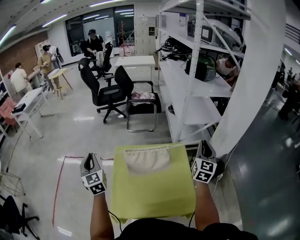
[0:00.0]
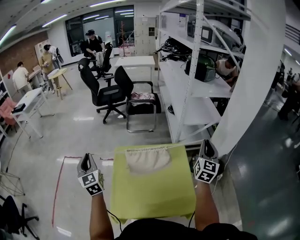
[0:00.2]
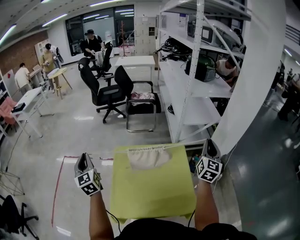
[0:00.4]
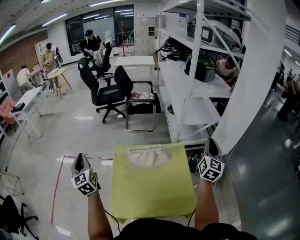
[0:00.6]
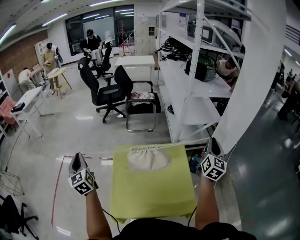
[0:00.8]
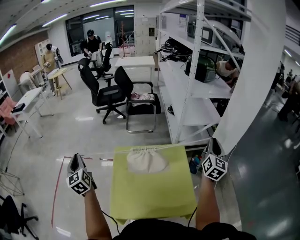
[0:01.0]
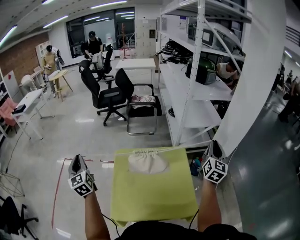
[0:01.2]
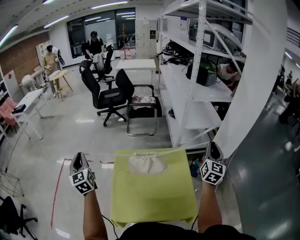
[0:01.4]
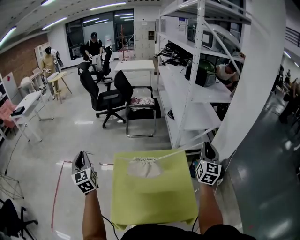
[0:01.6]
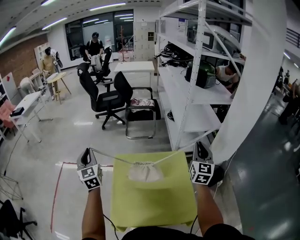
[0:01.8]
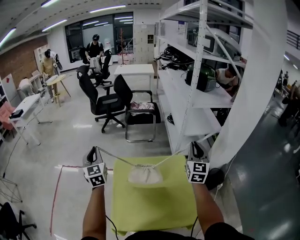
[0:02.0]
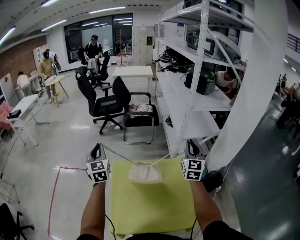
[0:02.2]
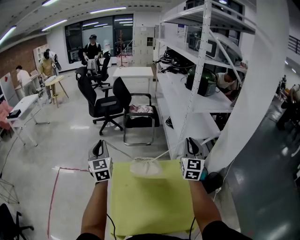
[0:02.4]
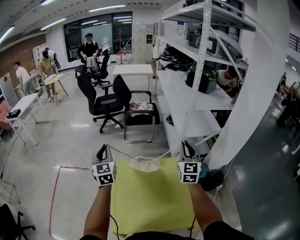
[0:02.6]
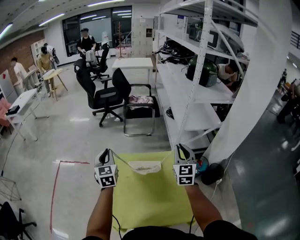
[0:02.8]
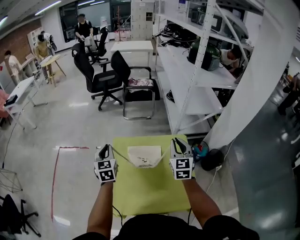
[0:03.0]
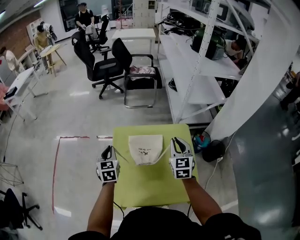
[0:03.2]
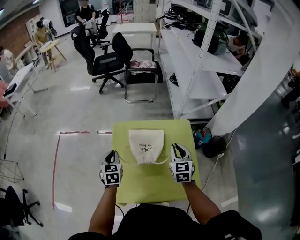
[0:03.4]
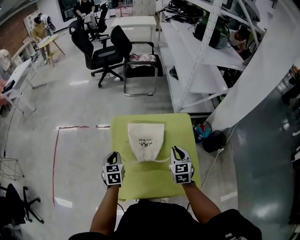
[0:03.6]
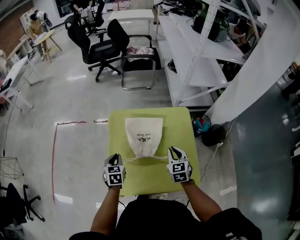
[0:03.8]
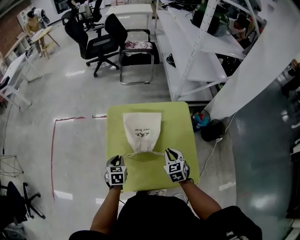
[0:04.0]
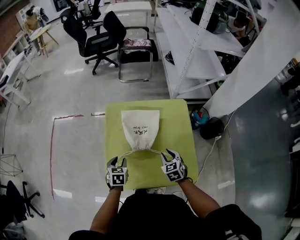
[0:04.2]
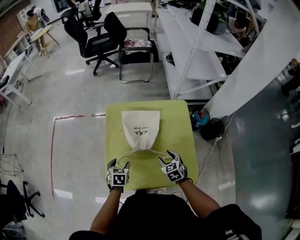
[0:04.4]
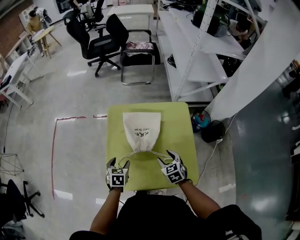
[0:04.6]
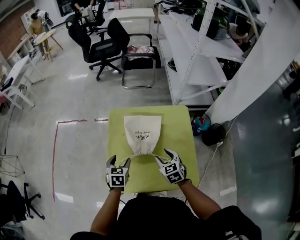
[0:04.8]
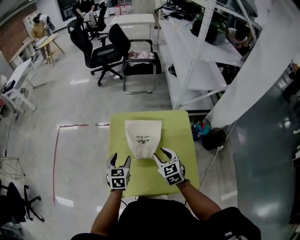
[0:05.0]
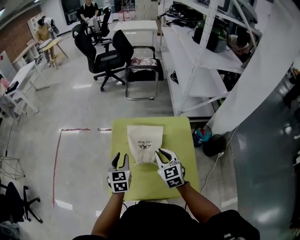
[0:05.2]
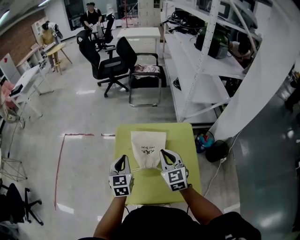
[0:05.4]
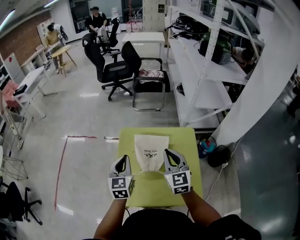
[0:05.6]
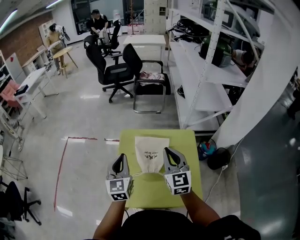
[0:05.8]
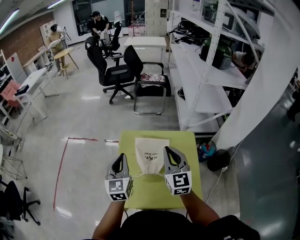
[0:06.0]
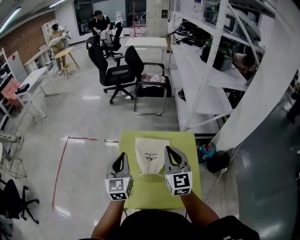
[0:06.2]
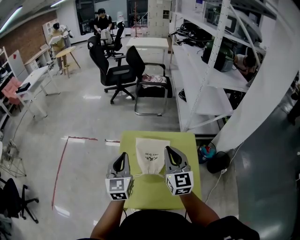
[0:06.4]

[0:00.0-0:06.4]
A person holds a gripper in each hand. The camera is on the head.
0:00.0 to 0:01.6: The left gripper shifts by some 5 cm.
0:01.6 to 0:03.2: The right gripper moves to the left and downward, roughly 25 cm, and rotates roughly 30 degrees. Meanwhile the left gripper shifts about 20 cm downward and to the right, and swivels some 30 degrees.
0:03.2 to 0:04.8: The left gripper is displaced downward, backward and to the right by about 20 cm, changes its angle by about 20 degrees, and opens, while the right gripper is displaced downward and backward by some 20 cm, changes its angle by roughly 30 degrees, and opens up.
0:04.8 to 0:06.4: Both grippers move upward, roughly 25 cm. The right gripper angles its fingers upward, by approximately 40 degrees, and closes. Meanwhile the left gripper tilts its fingers some 40 degrees upward, and closes up.

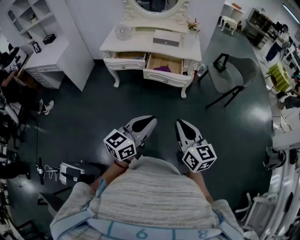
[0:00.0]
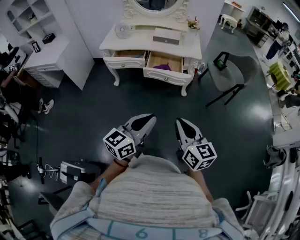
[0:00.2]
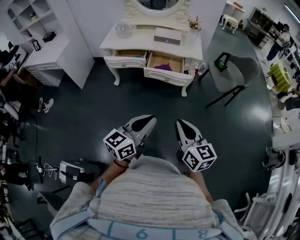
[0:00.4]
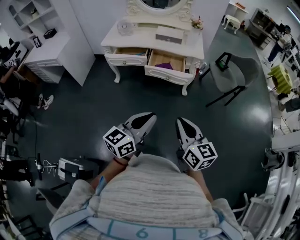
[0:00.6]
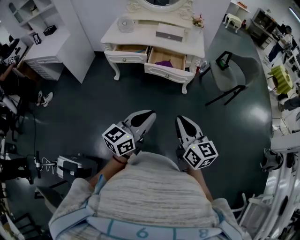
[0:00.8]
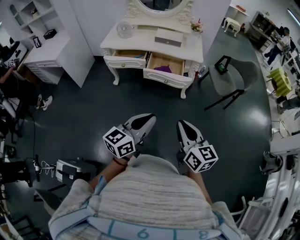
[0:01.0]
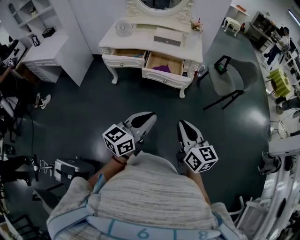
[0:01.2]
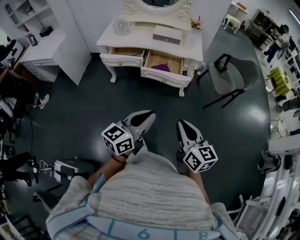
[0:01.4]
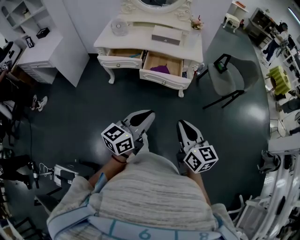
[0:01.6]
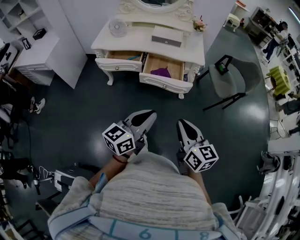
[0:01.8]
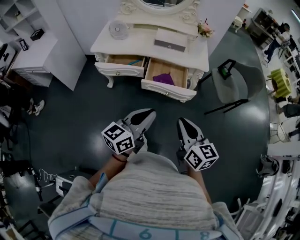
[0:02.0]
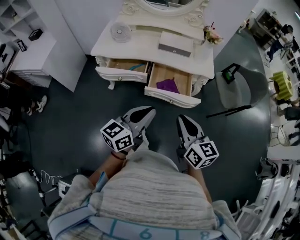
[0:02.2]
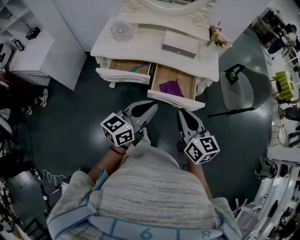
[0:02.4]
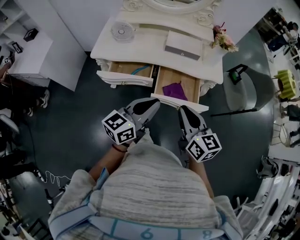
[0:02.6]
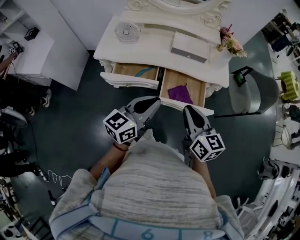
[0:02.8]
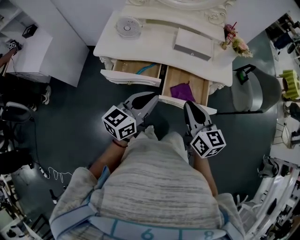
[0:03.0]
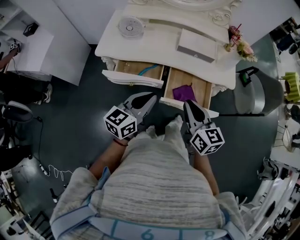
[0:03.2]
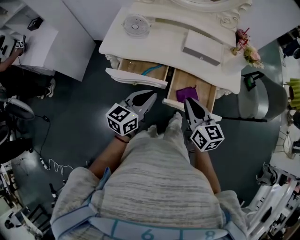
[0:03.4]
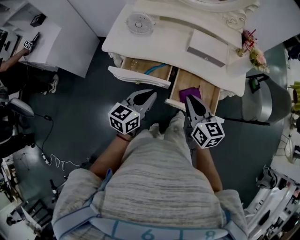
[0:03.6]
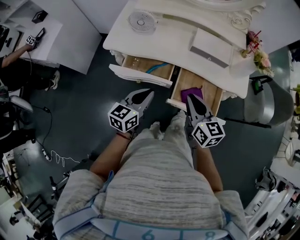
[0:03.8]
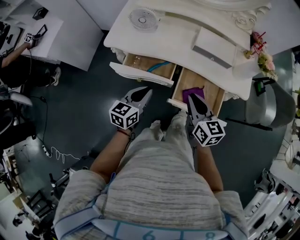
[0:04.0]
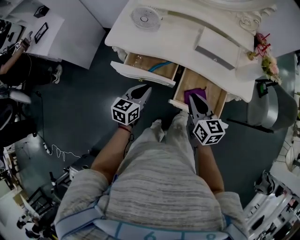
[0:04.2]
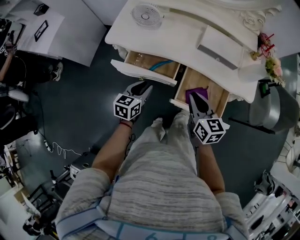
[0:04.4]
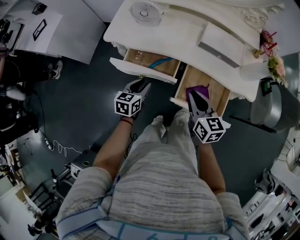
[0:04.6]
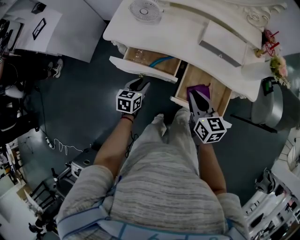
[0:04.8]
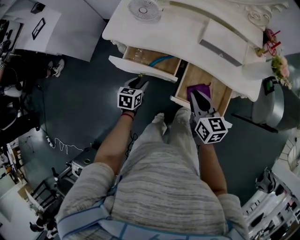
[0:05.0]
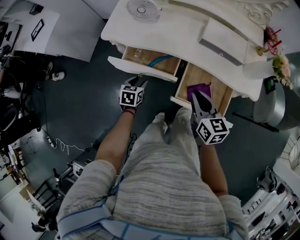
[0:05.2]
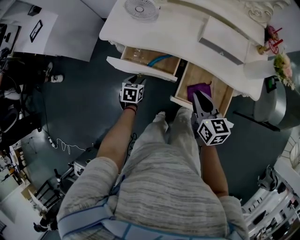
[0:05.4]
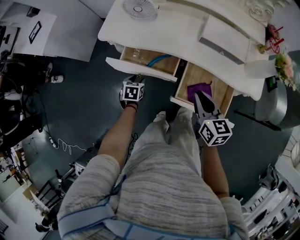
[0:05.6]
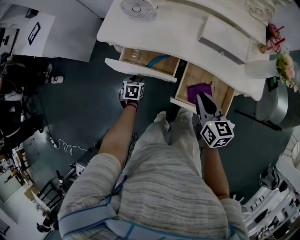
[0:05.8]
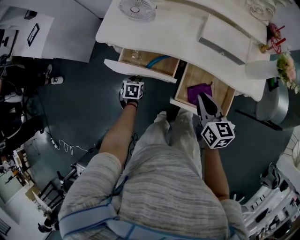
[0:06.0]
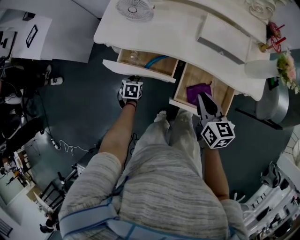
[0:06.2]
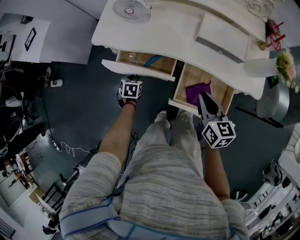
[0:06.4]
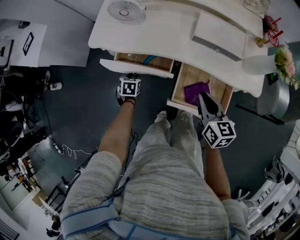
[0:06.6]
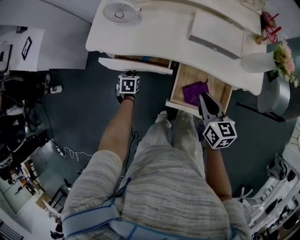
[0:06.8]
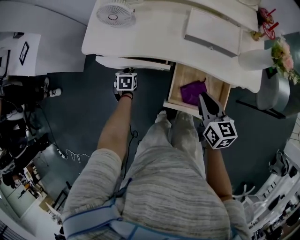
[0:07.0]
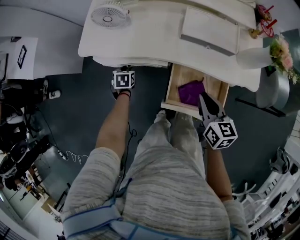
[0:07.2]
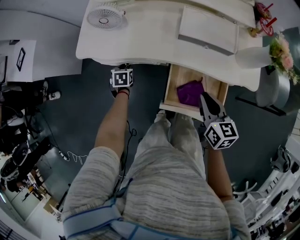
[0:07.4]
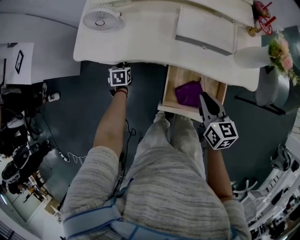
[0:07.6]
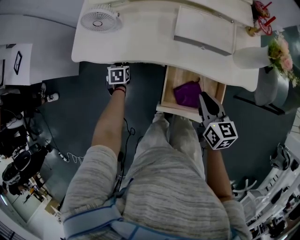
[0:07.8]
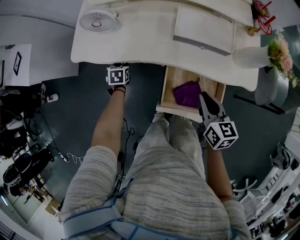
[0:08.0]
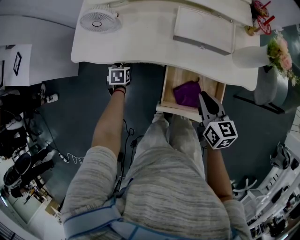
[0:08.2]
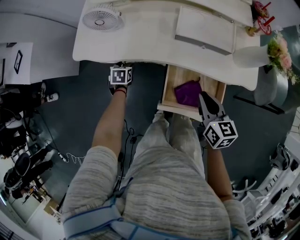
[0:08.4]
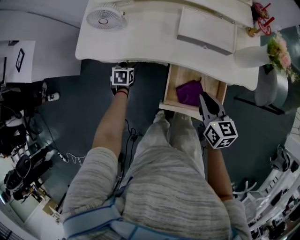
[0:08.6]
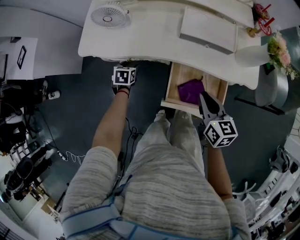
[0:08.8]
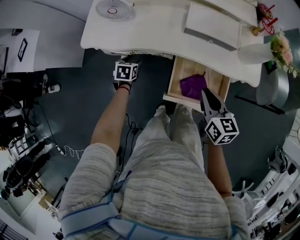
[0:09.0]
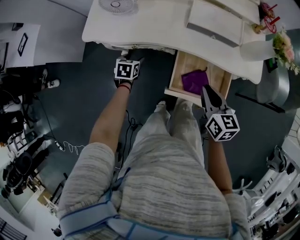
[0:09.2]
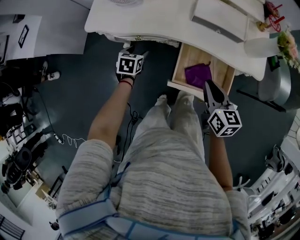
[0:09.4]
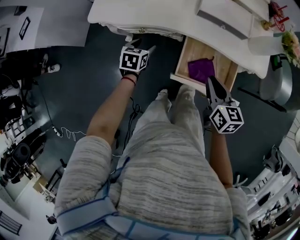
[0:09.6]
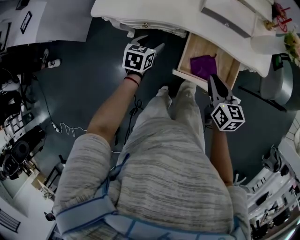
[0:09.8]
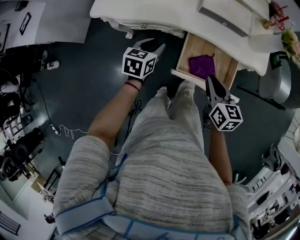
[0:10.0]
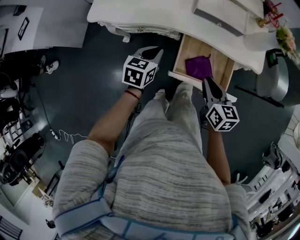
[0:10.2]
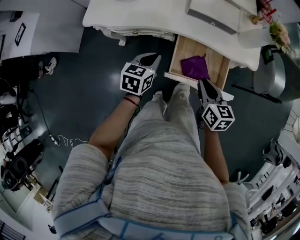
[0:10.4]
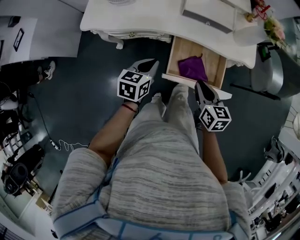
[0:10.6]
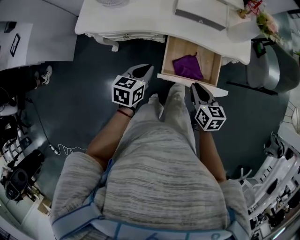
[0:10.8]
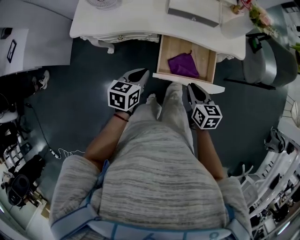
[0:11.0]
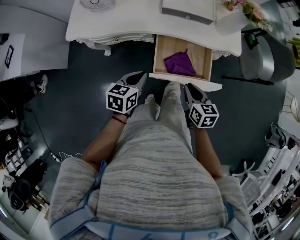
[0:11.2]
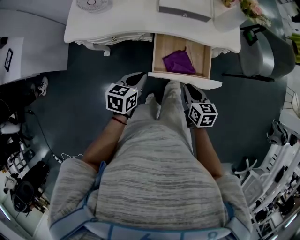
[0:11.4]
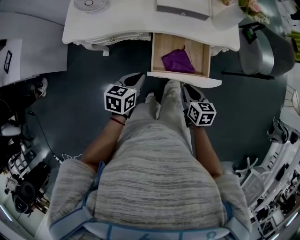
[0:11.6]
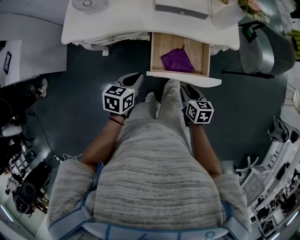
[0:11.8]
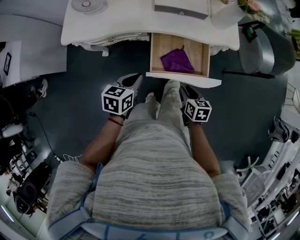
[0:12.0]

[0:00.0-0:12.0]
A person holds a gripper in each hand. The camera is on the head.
0:00.0 to 0:01.6: Both grippers move forward, roughly 10 cm.
0:01.6 to 0:03.0: Both grippers are carried forward and to the left, roughly 40 cm.
0:03.0 to 0:04.4: The right gripper heads downward and forward, covering roughly 15 cm, while the left gripper goes about 25 cm downward, forward and to the left, and rotates about 30 degrees.
0:04.4 to 0:06.0: The left gripper travels downward by roughly 20 cm, and tips its fingers downward by approximately 30 degrees. The right gripper moves approximately 5 cm.
0:06.0 to 0:07.6: The right gripper shifts about 10 cm to the right. Meanwhile the left gripper travels forward by about 15 cm.
0:07.6 to 0:09.0: The left gripper opens.
0:09.0 to 0:10.4: The right gripper is displaced backward by approximately 5 cm. The left gripper heads upward, to the right and backward, covering about 20 cm, turns by approximately 20 degrees, and closes its fingers.
0:10.4 to 0:12.0: The right gripper goes approximately 15 cm downward, backward and to the right; the left gripper heads backward, covering some 5 cm.

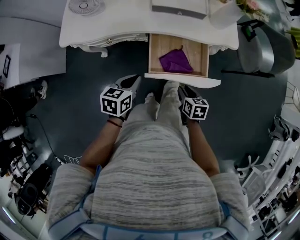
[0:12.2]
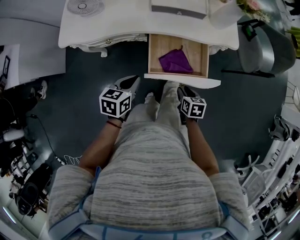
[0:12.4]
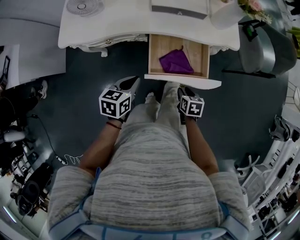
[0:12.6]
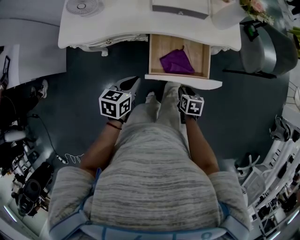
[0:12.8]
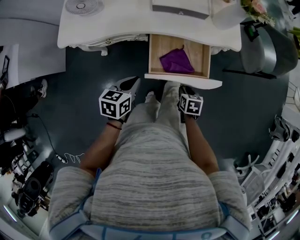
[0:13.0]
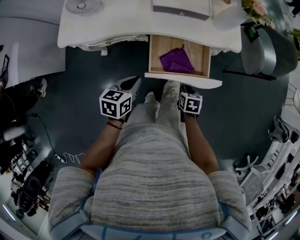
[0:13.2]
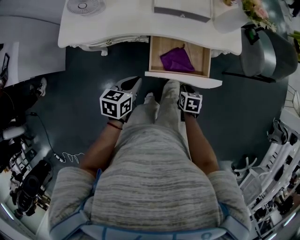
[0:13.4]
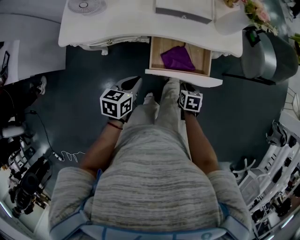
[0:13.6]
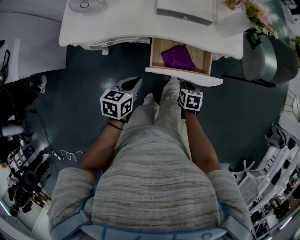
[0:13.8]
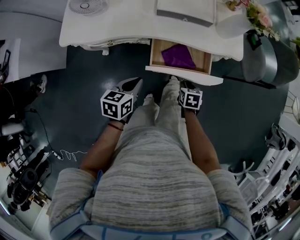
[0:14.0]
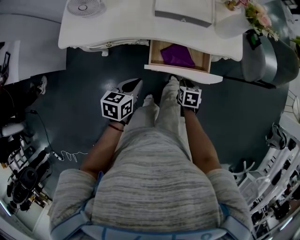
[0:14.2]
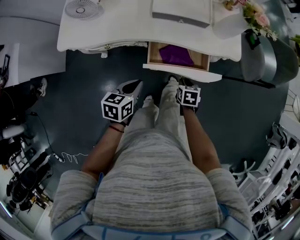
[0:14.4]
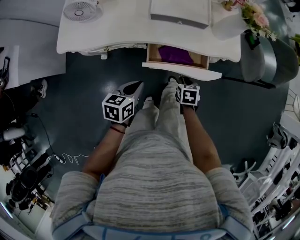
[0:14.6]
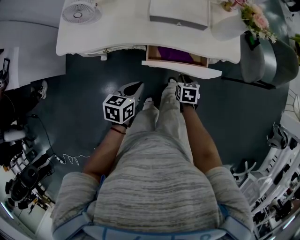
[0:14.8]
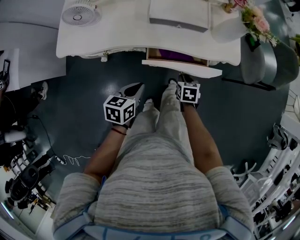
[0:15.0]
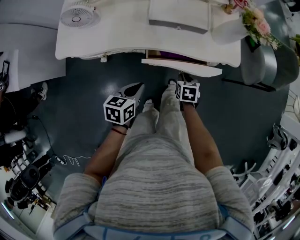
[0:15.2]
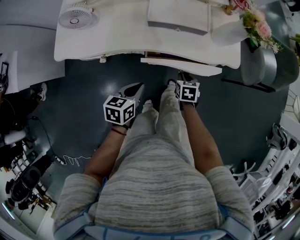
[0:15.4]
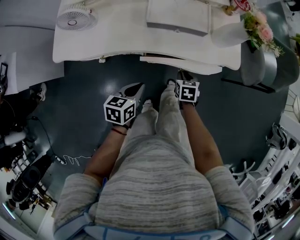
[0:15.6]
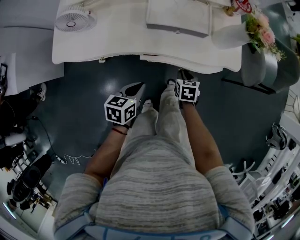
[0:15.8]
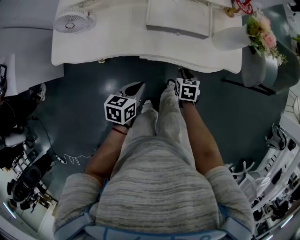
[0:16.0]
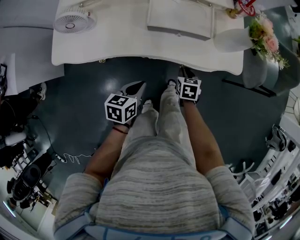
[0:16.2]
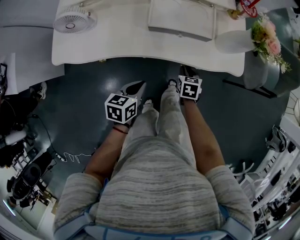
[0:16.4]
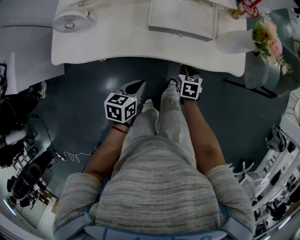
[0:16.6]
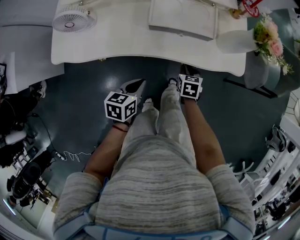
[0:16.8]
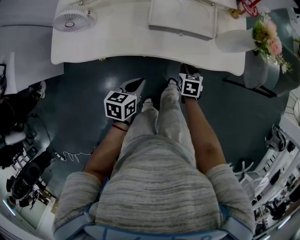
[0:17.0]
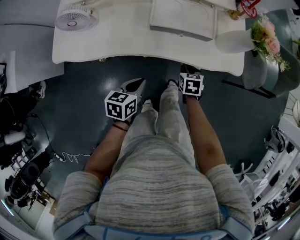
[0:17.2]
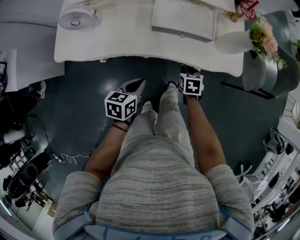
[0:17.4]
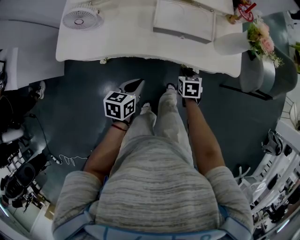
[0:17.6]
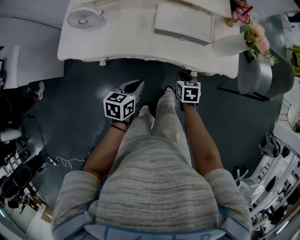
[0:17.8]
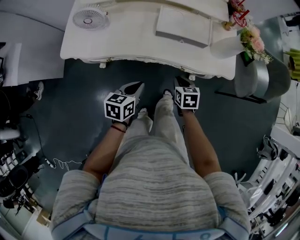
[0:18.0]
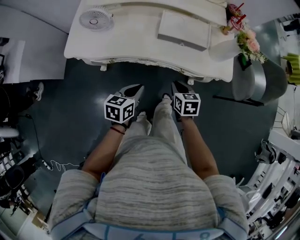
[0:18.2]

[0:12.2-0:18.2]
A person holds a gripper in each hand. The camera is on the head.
0:12.2 to 0:13.8: The right gripper travels forward by approximately 5 cm.
0:13.8 to 0:15.2: The right gripper heads forward, covering some 10 cm.
0:15.2 to 0:16.6: Both grippers travel together forward, roughly 5 cm.
0:16.6 to 0:18.2: The left gripper shifts about 5 cm upward. The right gripper is displaced upward, backward and to the left by about 15 cm.
